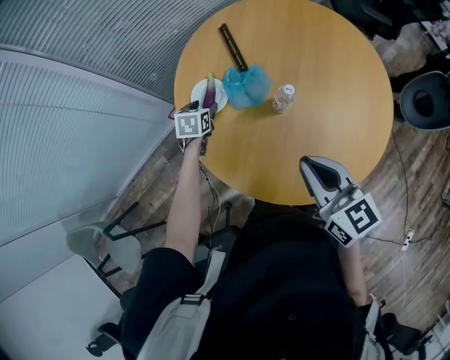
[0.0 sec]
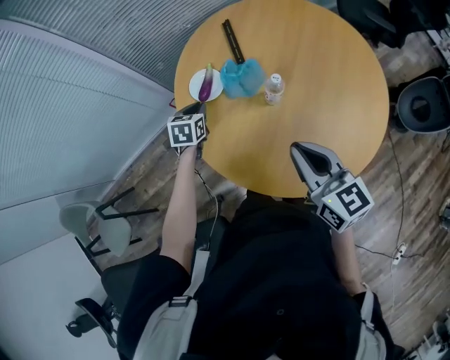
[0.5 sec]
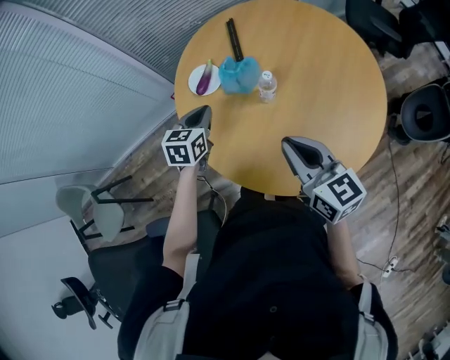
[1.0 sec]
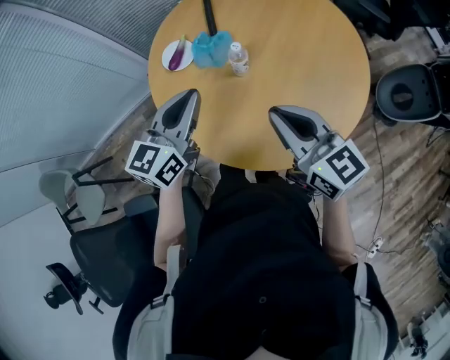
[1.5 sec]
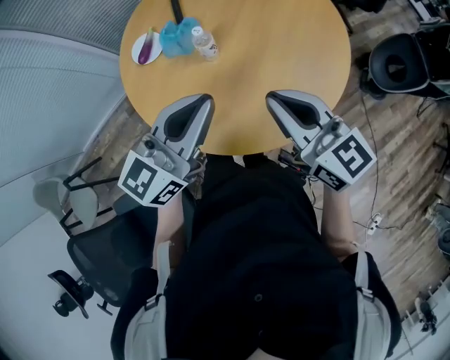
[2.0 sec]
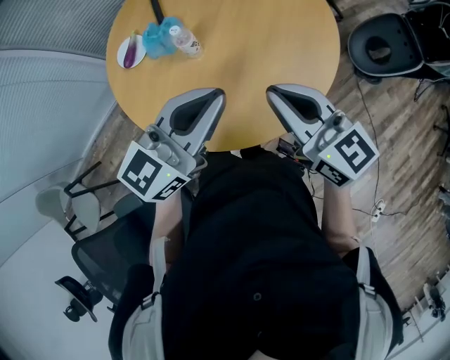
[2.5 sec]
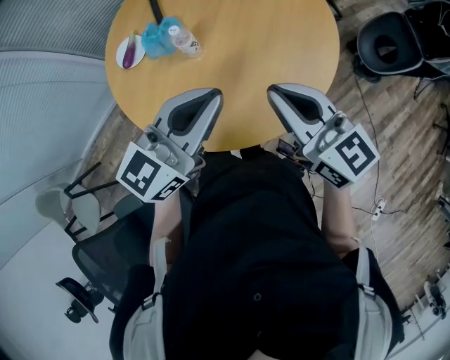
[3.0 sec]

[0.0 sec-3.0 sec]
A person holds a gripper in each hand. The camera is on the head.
0.0 sec to 1.5 sec: The left gripper travels upward, backward and to the right by approximately 40 cm, points its fingers roughly 40 degrees further upward, and closes up, while the right gripper heads to the right, covering some 10 cm.
1.5 sec to 3.0 sec: The right gripper moves to the right, some 10 cm; the left gripper shifts approximately 15 cm to the right and backward, and rotates some 30 degrees.

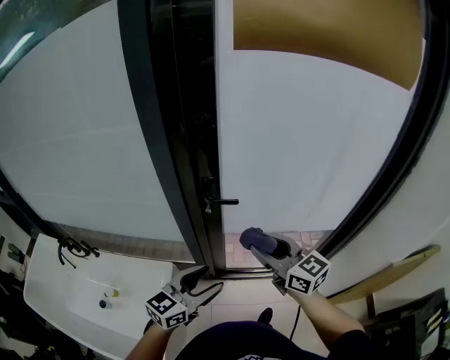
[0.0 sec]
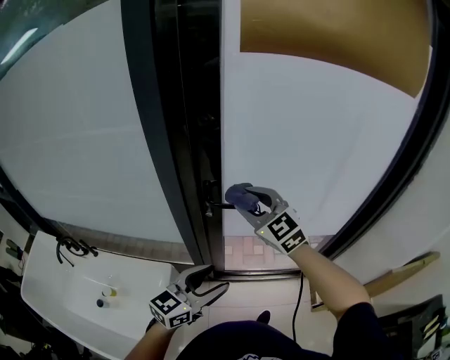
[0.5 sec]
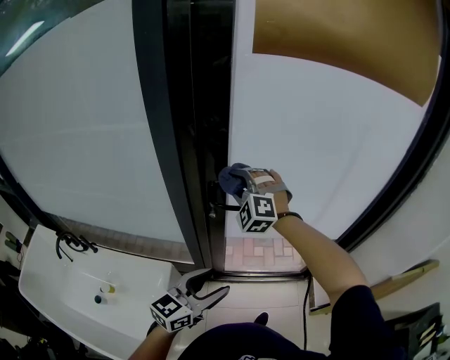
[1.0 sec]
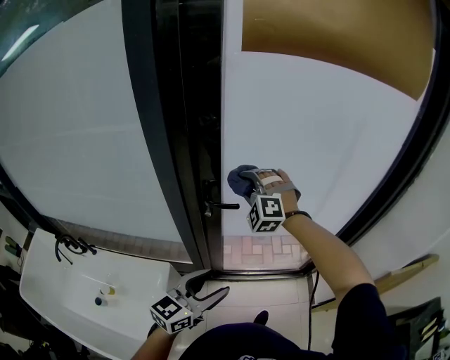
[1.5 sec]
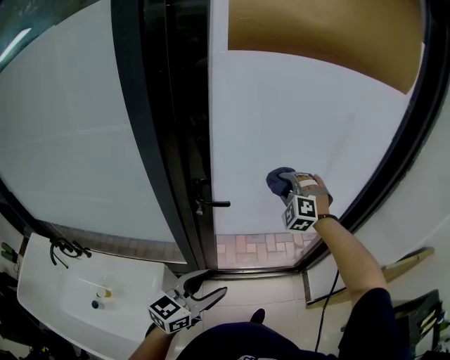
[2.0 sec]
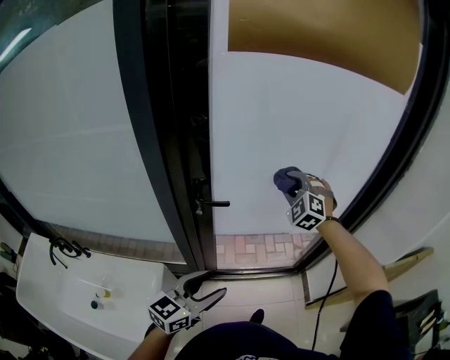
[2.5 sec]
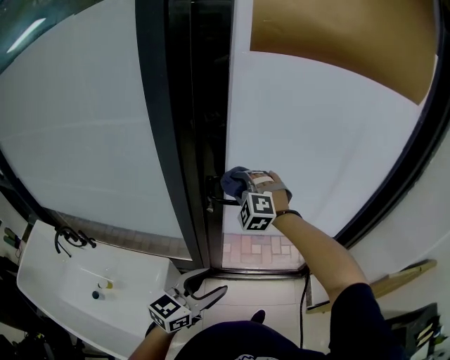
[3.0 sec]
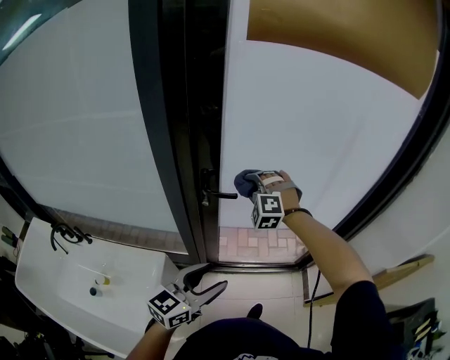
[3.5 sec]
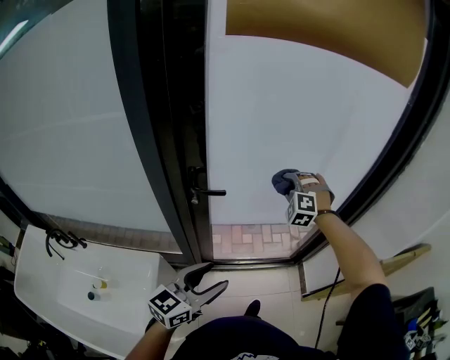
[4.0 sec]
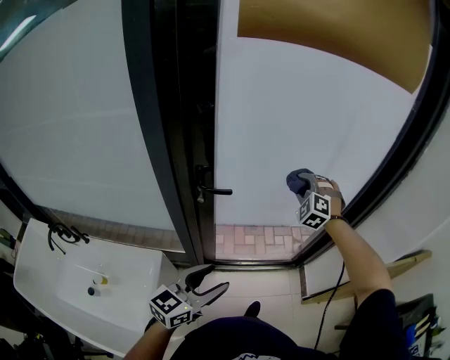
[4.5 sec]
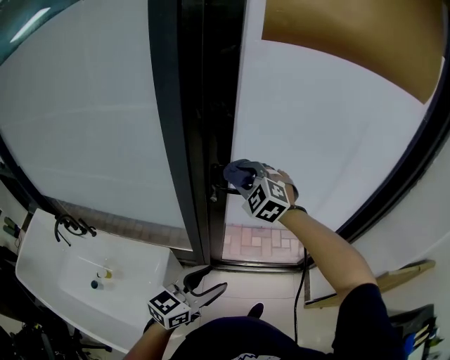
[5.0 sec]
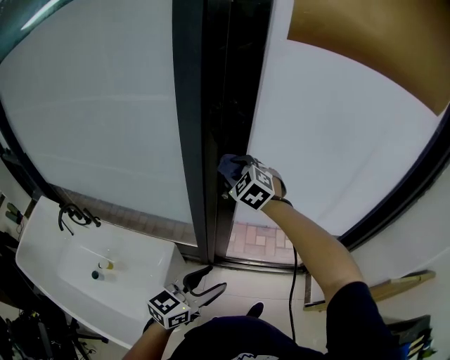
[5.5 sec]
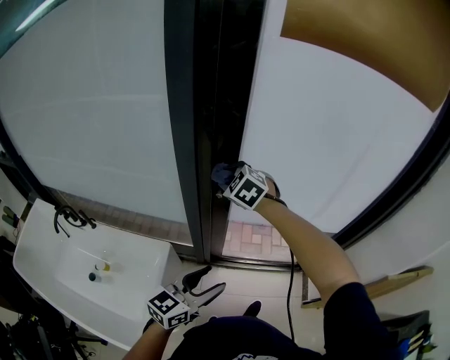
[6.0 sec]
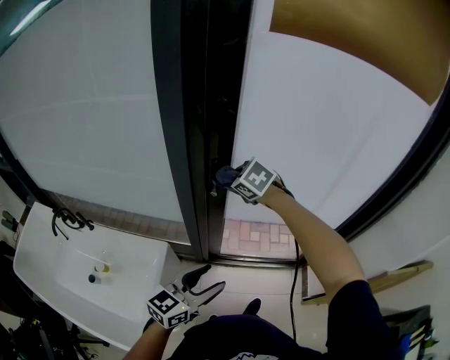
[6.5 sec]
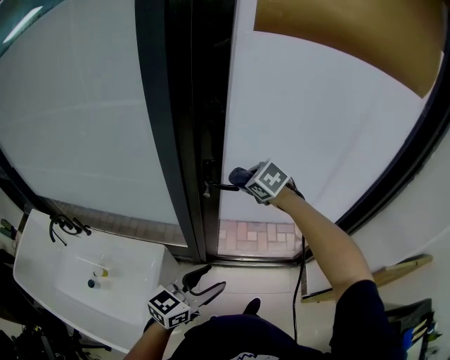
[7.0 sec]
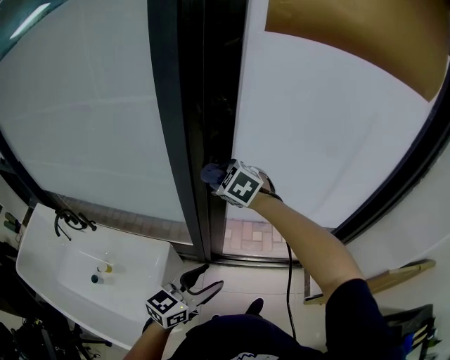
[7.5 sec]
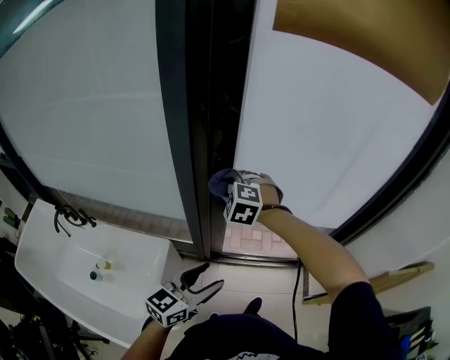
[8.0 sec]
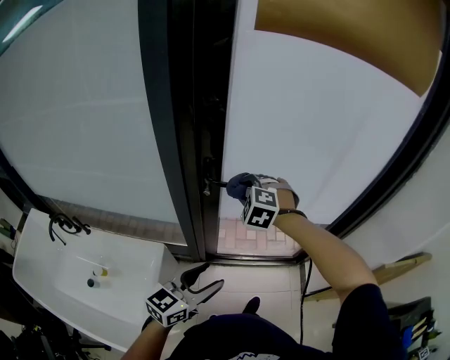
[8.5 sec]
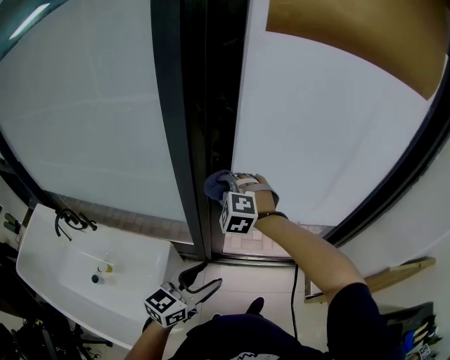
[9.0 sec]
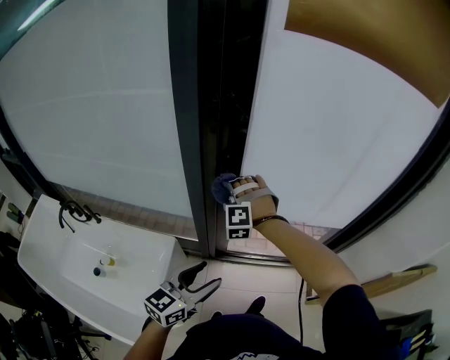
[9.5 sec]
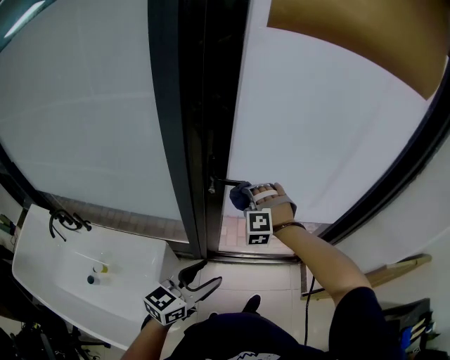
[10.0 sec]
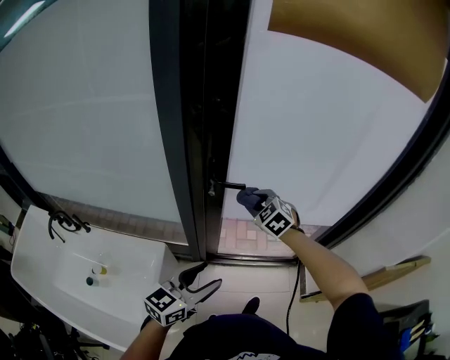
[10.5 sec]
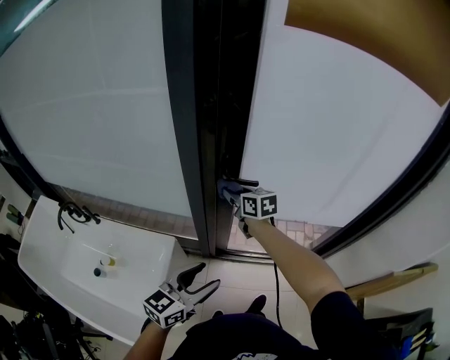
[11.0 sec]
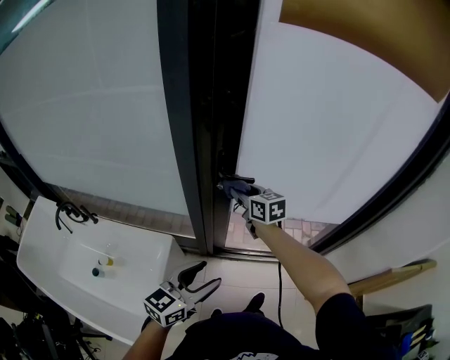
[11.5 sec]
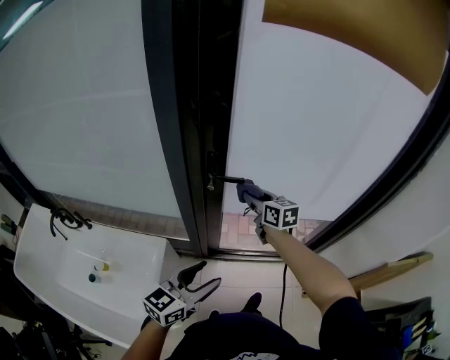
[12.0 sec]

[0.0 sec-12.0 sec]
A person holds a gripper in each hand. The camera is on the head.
0.0 sec to 2.0 sec: The right gripper shifts about 20 cm forward, and rotates around the line of its fingers by some 80 degrees, counterclockwise from behind.
2.0 sec to 4.0 sec: The right gripper travels downward by some 5 cm, and reaches about 20 cm to the left, then returns.
4.0 sec to 6.0 sec: The left gripper shifts about 5 cm to the left; the right gripper travels to the left by about 30 cm, and changes its angle by approximately 40 degrees.
6.0 sec to 8.0 sec: The right gripper moves roughly 10 cm to the right and comes back, and turns by some 20 degrees.
8.0 sec to 10.0 sec: The right gripper moves left and right over some 10 cm, changing direction 2 times, and rotates about 30 degrees.
10.0 sec to 12.0 sec: The right gripper reaches some 10 cm to the left, then returns, and rotates around the line of its fingers by approximately 100 degrees, clockwise from behind.

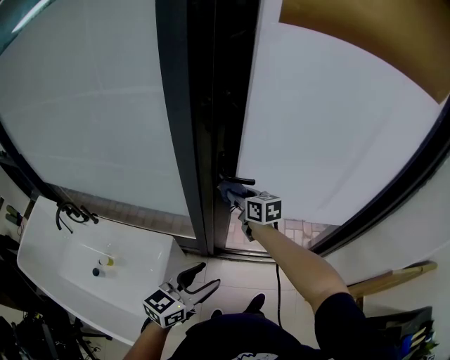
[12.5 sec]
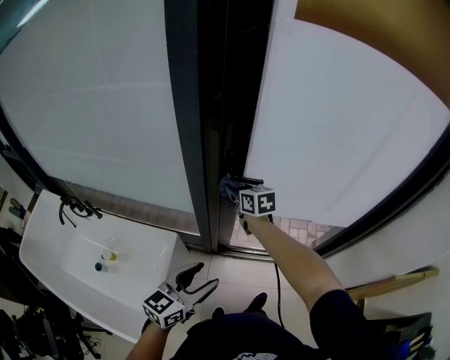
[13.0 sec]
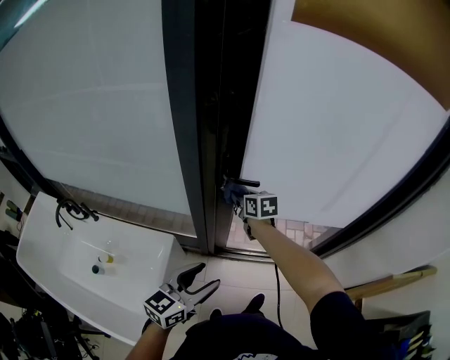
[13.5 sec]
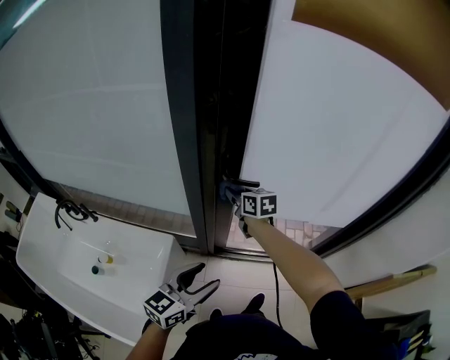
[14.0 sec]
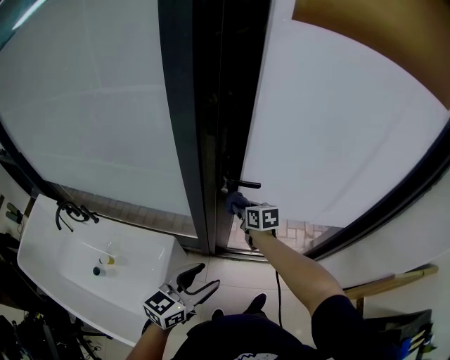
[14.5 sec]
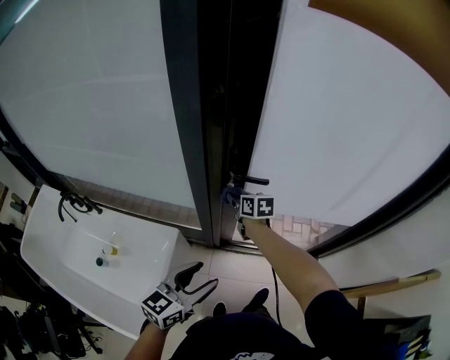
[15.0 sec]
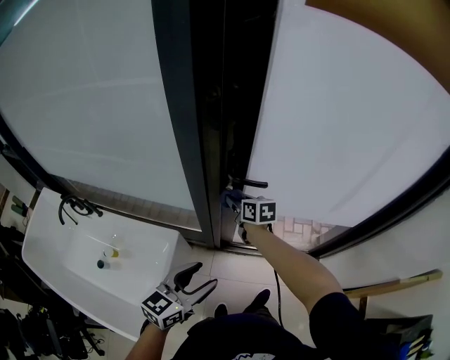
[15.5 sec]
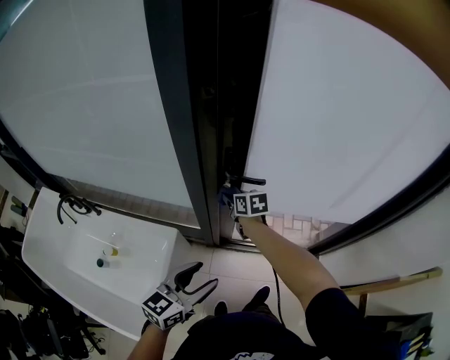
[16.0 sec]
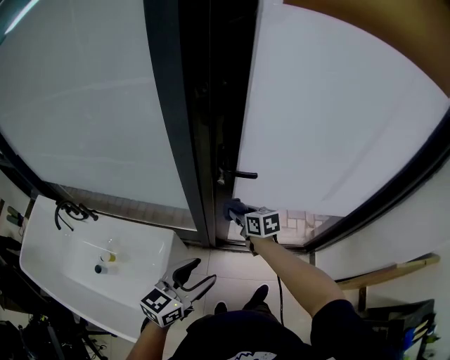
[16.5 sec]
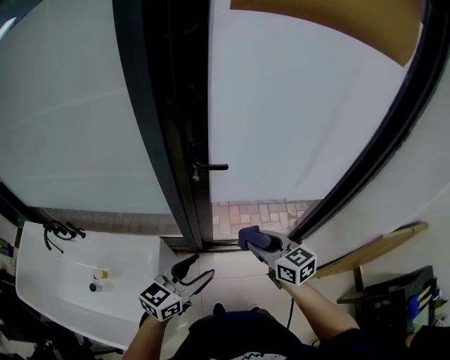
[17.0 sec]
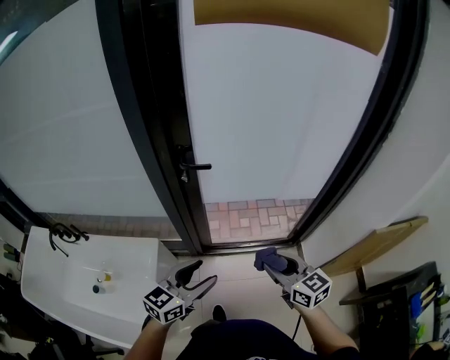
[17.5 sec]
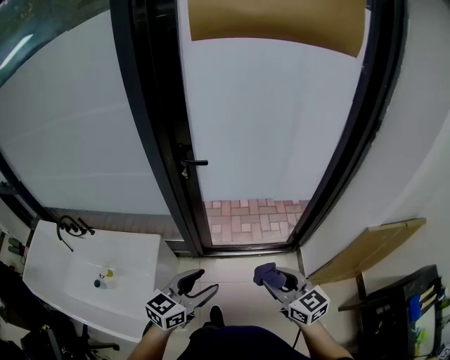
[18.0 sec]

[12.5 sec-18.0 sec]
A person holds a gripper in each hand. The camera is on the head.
12.5 sec to 14.5 sec: The right gripper shifts about 10 cm downward.
14.5 sec to 16.0 sec: The right gripper ends up about 5 cm from where it was.
16.0 sec to 18.0 sec: The left gripper moves backward and to the right, some 25 cm. The right gripper shifts about 60 cm backward and to the right, and changes its angle by some 30 degrees.

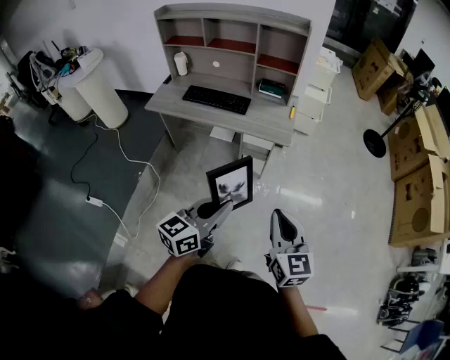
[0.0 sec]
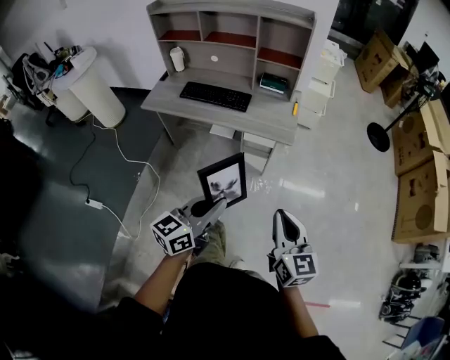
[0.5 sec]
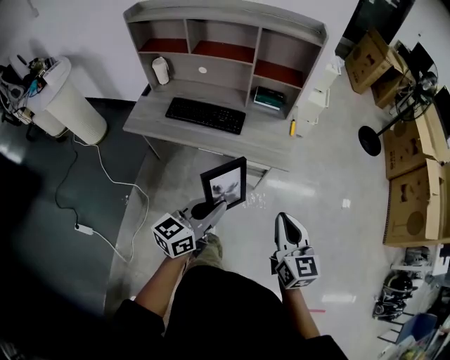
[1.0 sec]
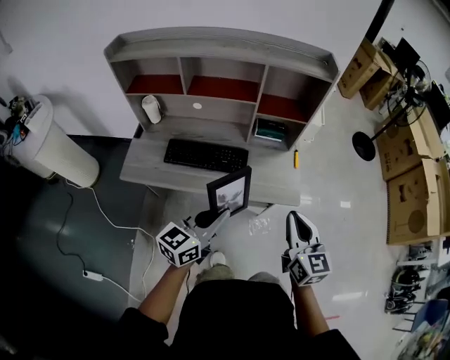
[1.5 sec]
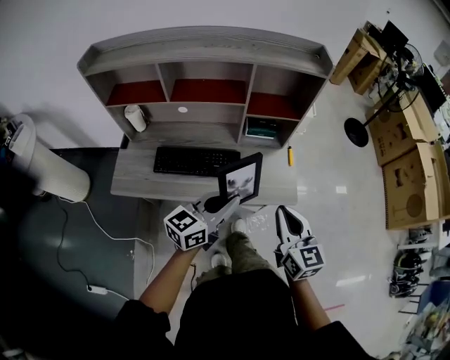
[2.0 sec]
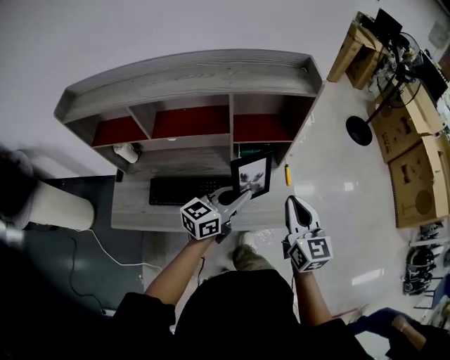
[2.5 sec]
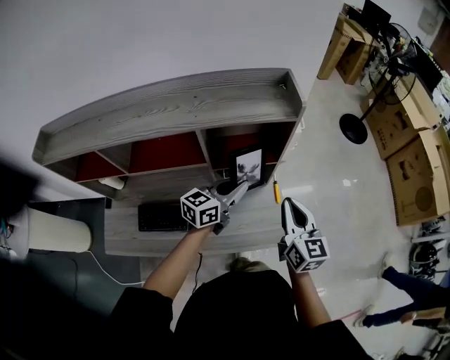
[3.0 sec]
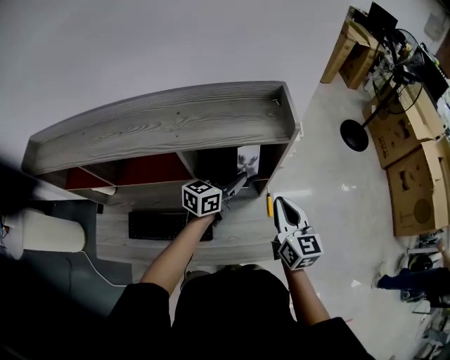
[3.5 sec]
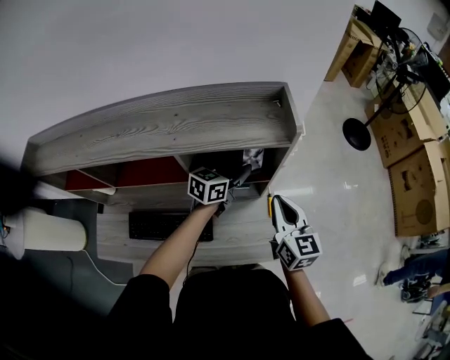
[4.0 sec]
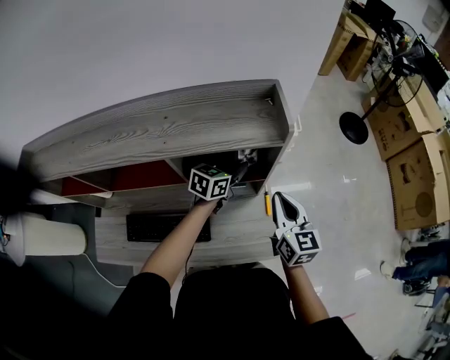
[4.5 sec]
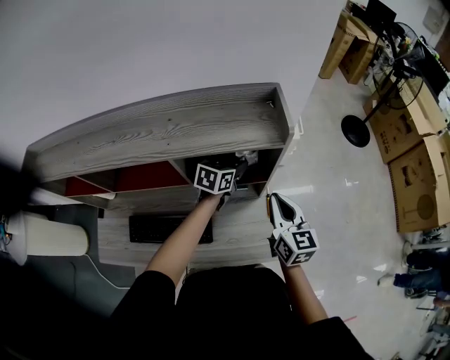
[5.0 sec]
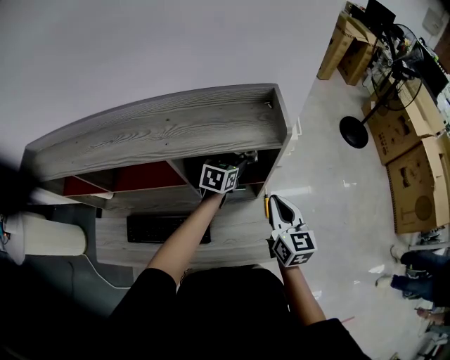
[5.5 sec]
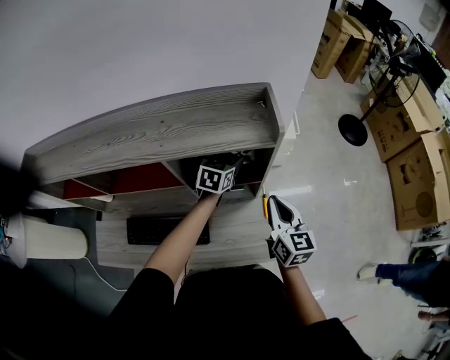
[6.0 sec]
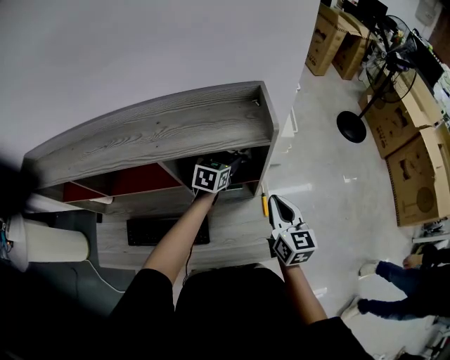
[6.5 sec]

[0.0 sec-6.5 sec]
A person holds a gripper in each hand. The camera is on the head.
0.0 sec to 2.0 sec: The pair of grippers is taken forward and to the left, about 50 cm.
2.0 sec to 4.5 sec: The two grippers go roughly 40 cm forward. The left gripper swivels approximately 20 degrees.
4.5 sec to 6.5 sec: The left gripper changes place by about 5 cm, swivels about 20 degrees, and opens.
